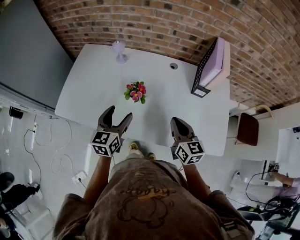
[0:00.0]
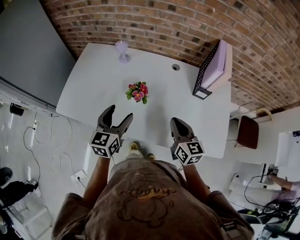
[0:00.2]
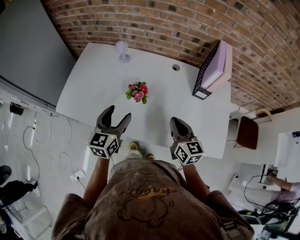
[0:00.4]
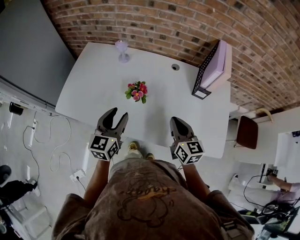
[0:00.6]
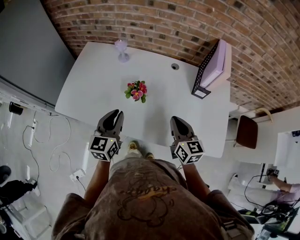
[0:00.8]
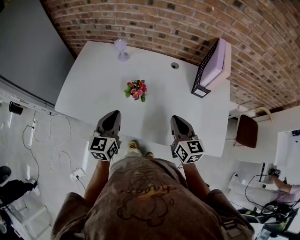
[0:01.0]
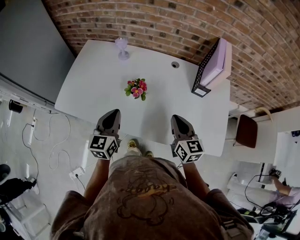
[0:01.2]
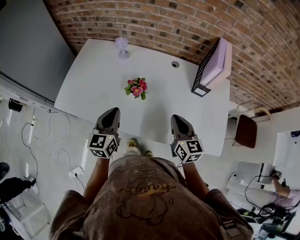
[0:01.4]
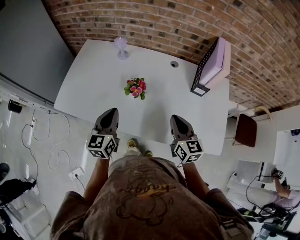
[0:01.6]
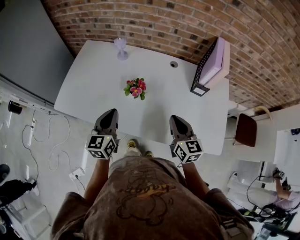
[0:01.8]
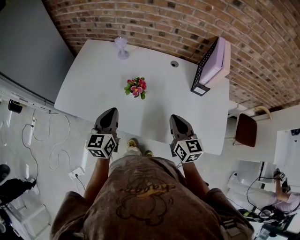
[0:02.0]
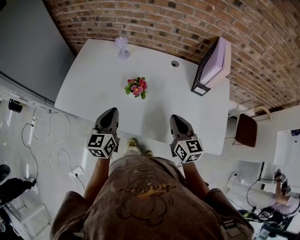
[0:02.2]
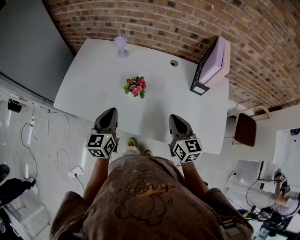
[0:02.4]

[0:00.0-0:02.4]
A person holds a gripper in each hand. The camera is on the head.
0:00.0 to 0:01.2: The left gripper closes up.
0:01.2 to 0:02.4: Both grippers stay put.

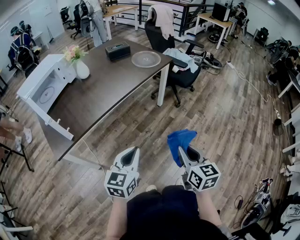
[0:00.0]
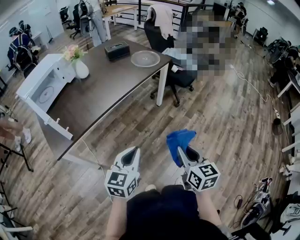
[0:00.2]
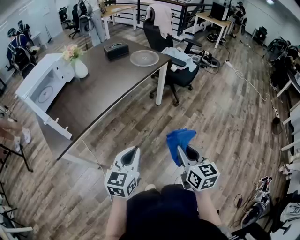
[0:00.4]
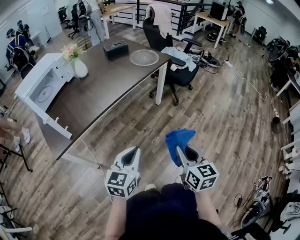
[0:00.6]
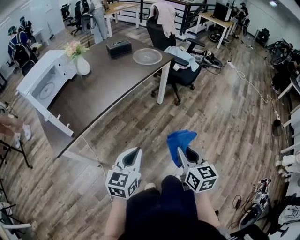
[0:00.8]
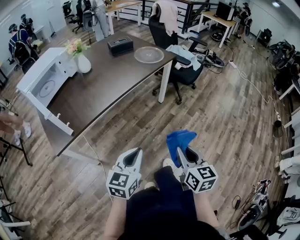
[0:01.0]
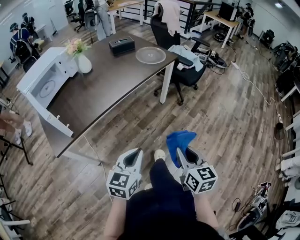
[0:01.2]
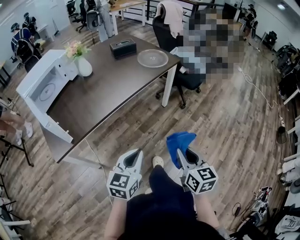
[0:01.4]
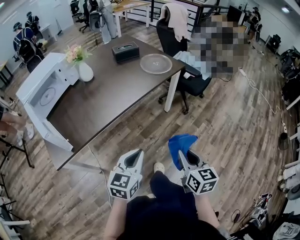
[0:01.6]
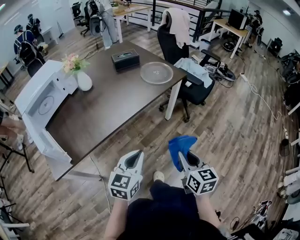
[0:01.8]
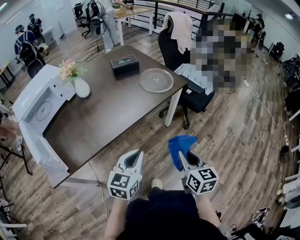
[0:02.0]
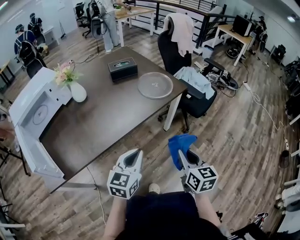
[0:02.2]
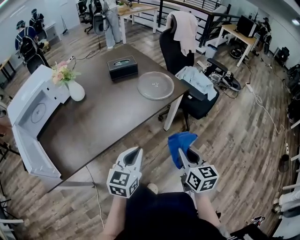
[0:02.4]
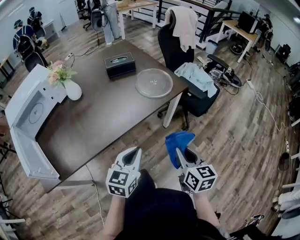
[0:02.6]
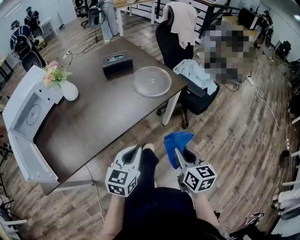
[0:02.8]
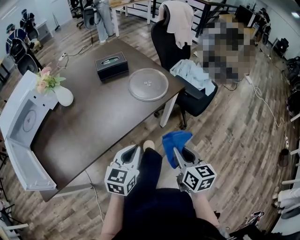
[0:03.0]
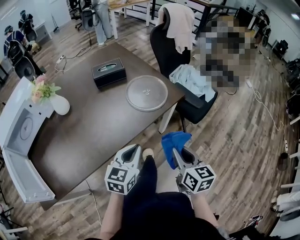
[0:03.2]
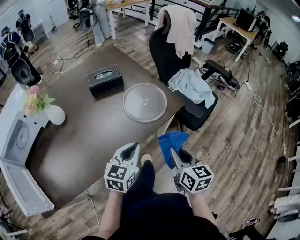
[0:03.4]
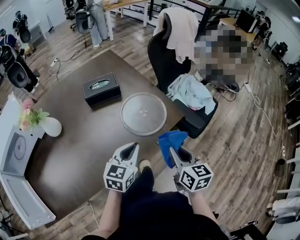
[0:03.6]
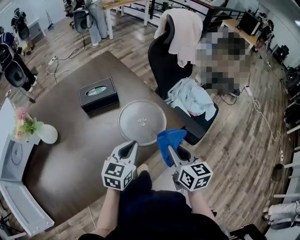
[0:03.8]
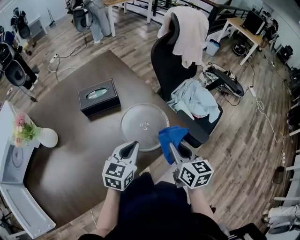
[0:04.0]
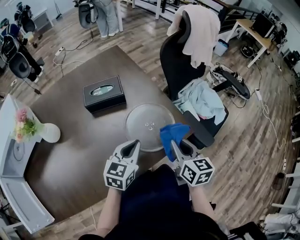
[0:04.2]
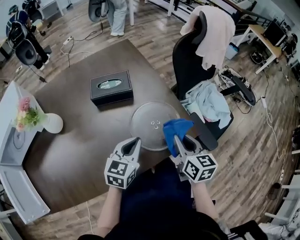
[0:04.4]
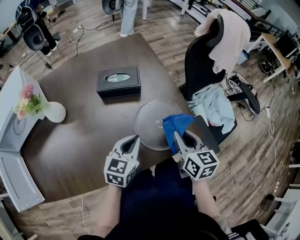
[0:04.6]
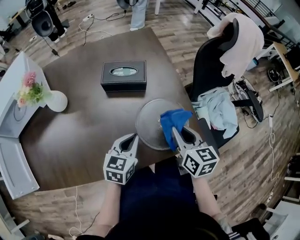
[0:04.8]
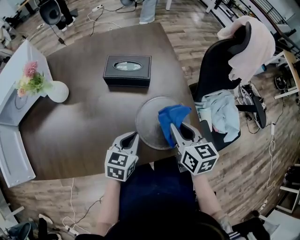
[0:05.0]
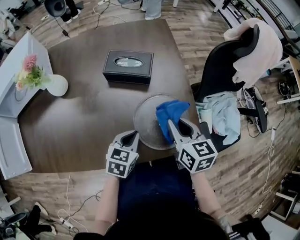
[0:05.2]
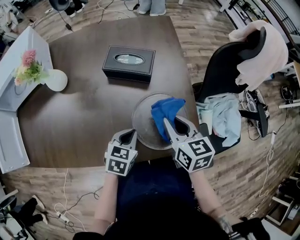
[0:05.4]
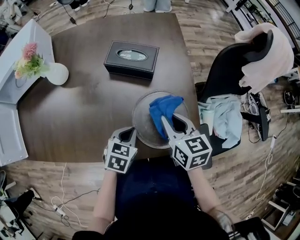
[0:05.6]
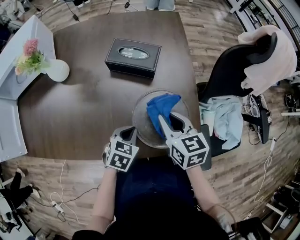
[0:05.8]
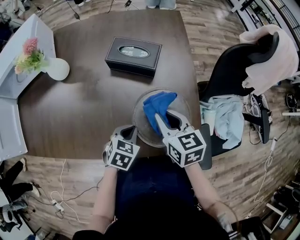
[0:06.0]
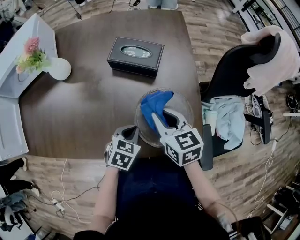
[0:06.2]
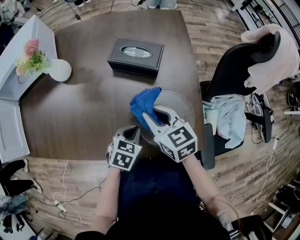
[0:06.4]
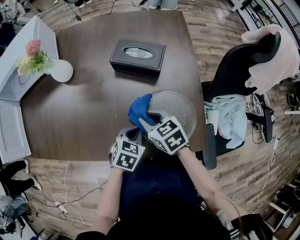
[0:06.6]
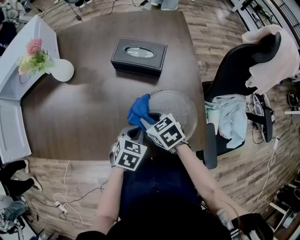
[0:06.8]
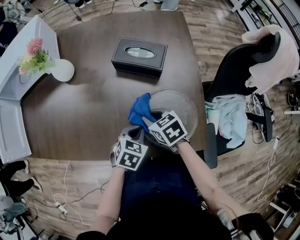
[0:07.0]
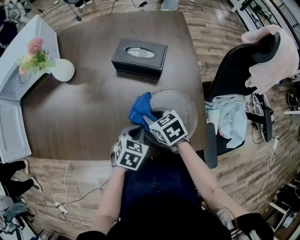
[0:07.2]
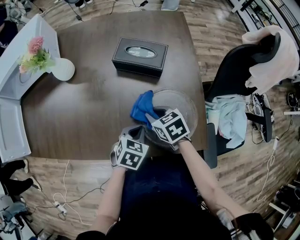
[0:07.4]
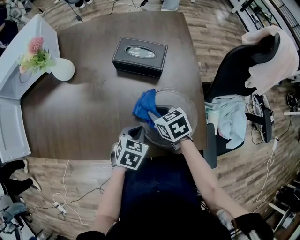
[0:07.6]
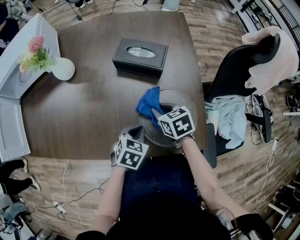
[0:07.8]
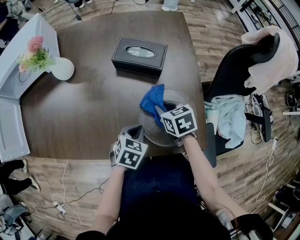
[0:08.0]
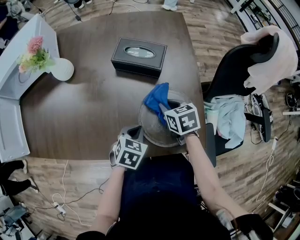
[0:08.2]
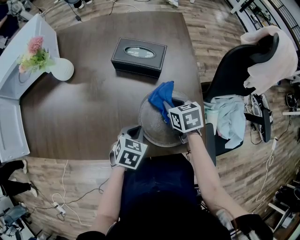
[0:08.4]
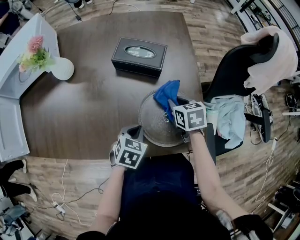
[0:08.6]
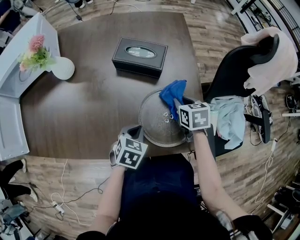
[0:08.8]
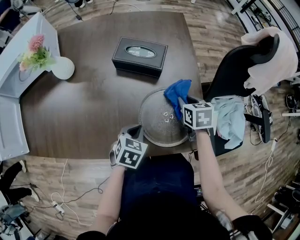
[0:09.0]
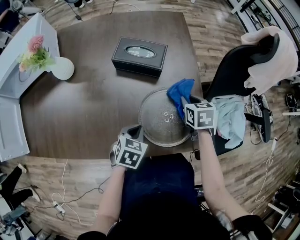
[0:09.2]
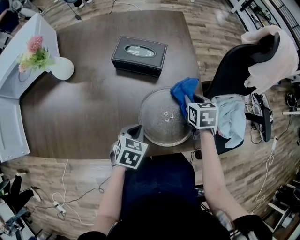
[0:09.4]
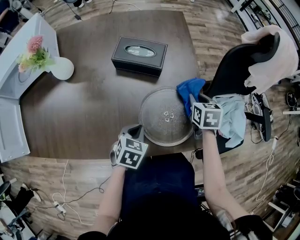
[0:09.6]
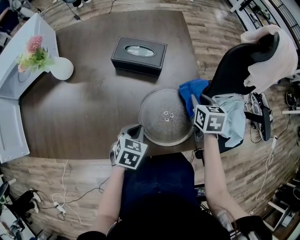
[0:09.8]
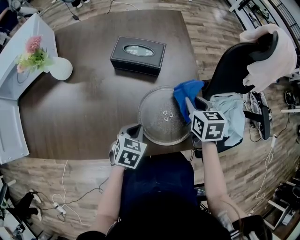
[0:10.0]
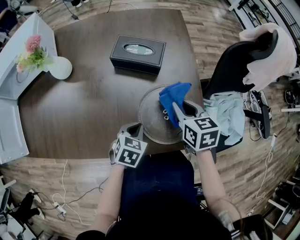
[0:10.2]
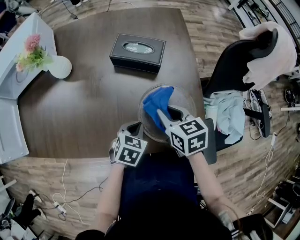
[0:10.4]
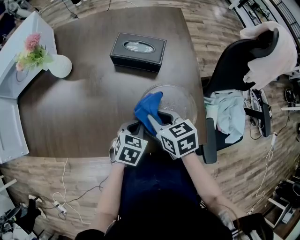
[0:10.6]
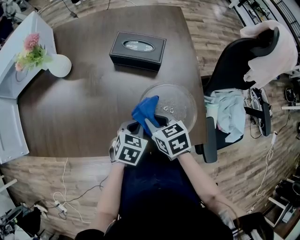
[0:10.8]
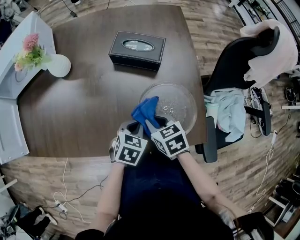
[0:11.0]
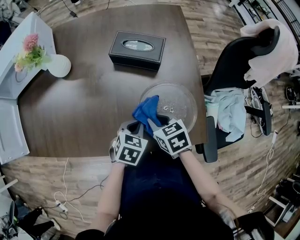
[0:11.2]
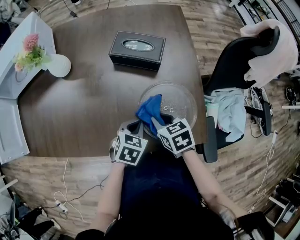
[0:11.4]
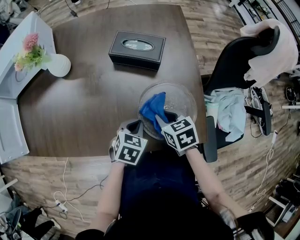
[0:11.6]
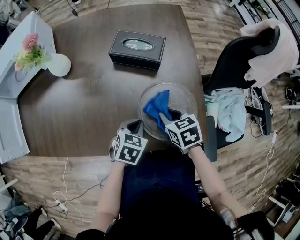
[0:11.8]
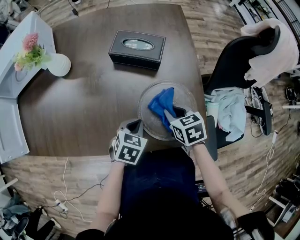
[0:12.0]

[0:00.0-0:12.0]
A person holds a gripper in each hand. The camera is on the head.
0:00.0 to 0:01.6: The two grippers go some 10 cm forward.
0:01.6 to 0:03.0: The grippers both shift forward by about 30 cm.
0:03.0 to 0:04.4: Both grippers move forward, roughly 35 cm.
0:04.4 to 0:06.0: The left gripper travels downward by roughly 10 cm, and angles its fingers downward, by some 30 degrees. Meanwhile the right gripper changes place by roughly 15 cm, and rotates roughly 40 degrees.
0:06.0 to 0:07.6: The right gripper is displaced downward and to the left by about 10 cm, and changes its angle by about 20 degrees.
0:07.6 to 0:09.0: The right gripper is displaced to the right by some 15 cm, and swivels some 20 degrees.
0:09.0 to 0:10.4: The right gripper heads to the left, backward and upward, covering some 15 cm.
0:10.4 to 0:12.0: The right gripper is displaced downward by roughly 5 cm.

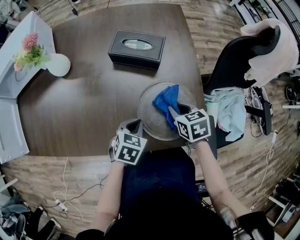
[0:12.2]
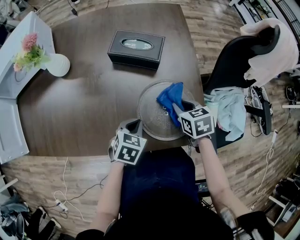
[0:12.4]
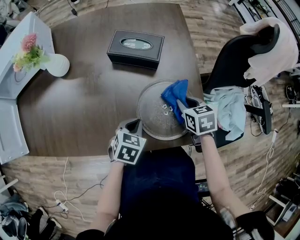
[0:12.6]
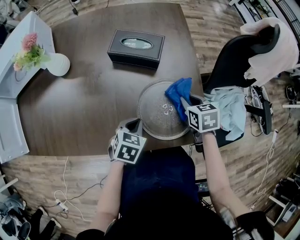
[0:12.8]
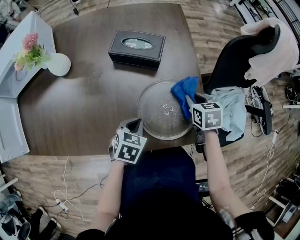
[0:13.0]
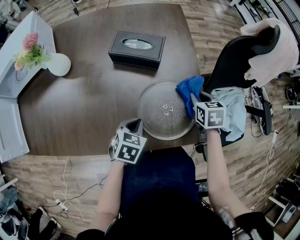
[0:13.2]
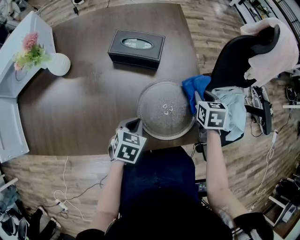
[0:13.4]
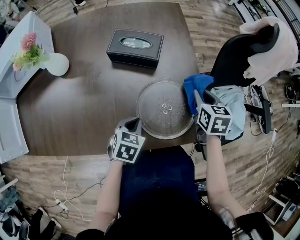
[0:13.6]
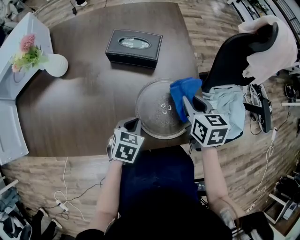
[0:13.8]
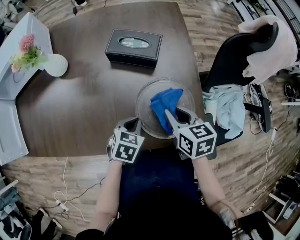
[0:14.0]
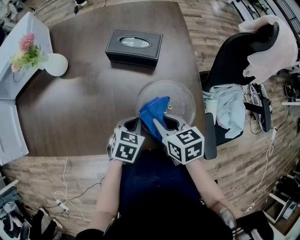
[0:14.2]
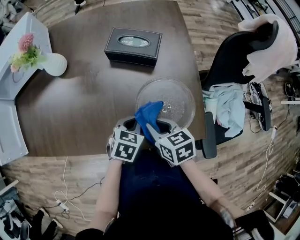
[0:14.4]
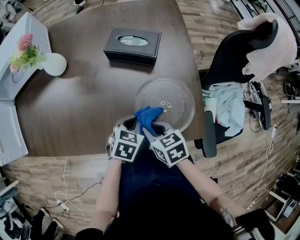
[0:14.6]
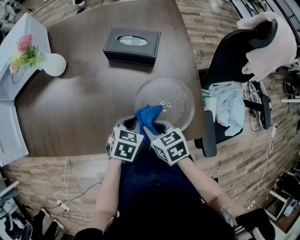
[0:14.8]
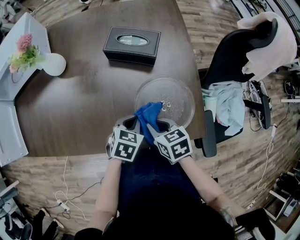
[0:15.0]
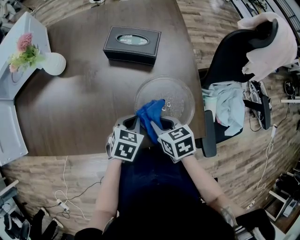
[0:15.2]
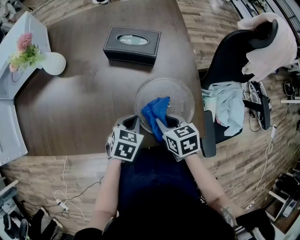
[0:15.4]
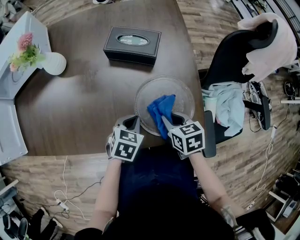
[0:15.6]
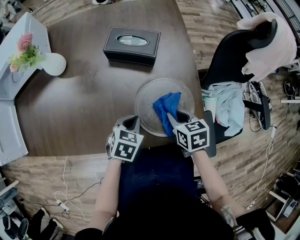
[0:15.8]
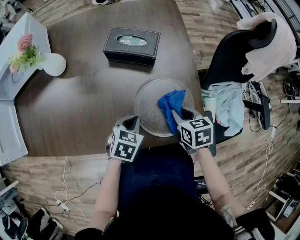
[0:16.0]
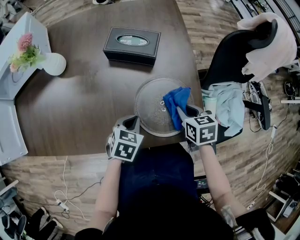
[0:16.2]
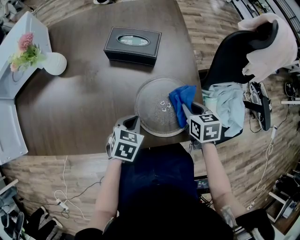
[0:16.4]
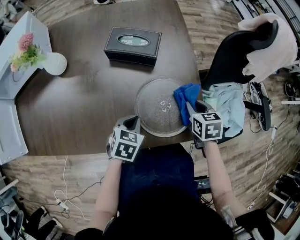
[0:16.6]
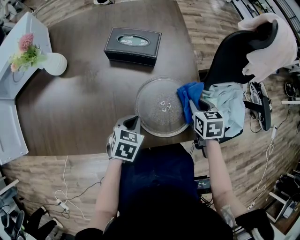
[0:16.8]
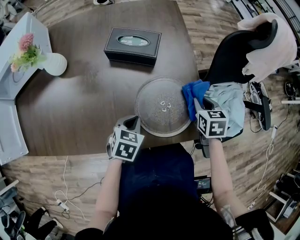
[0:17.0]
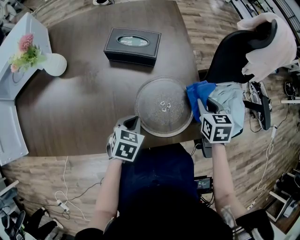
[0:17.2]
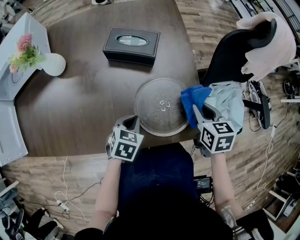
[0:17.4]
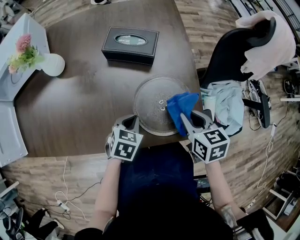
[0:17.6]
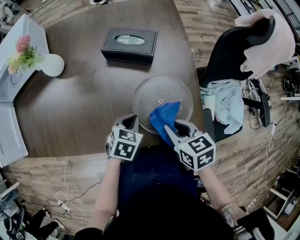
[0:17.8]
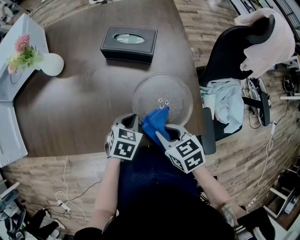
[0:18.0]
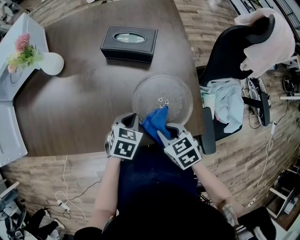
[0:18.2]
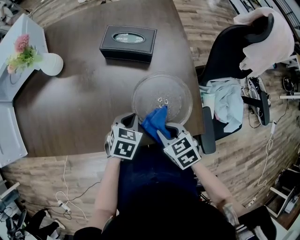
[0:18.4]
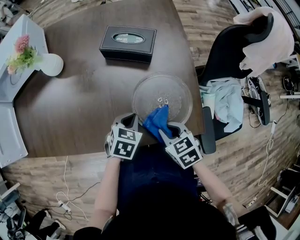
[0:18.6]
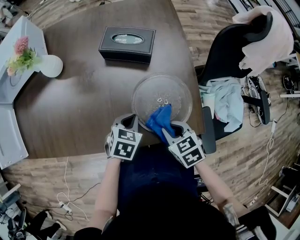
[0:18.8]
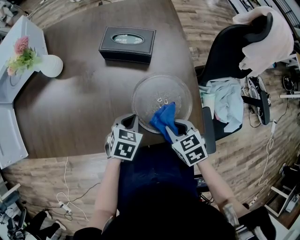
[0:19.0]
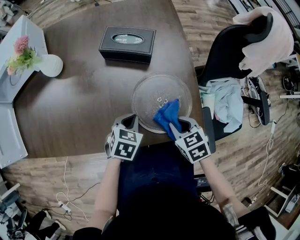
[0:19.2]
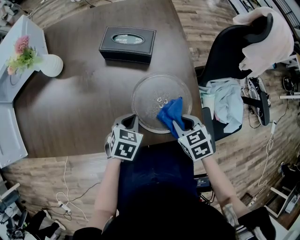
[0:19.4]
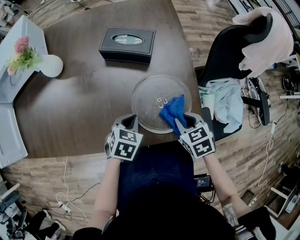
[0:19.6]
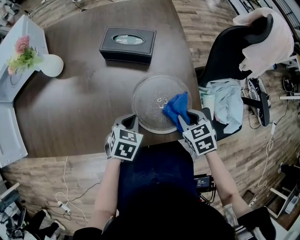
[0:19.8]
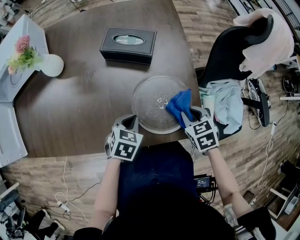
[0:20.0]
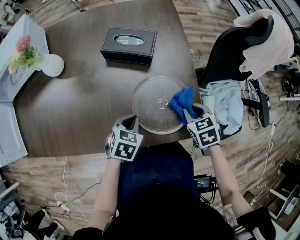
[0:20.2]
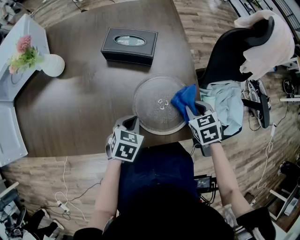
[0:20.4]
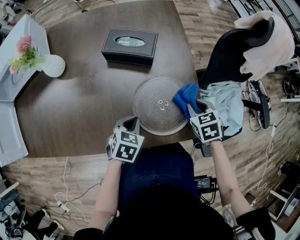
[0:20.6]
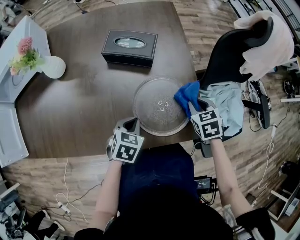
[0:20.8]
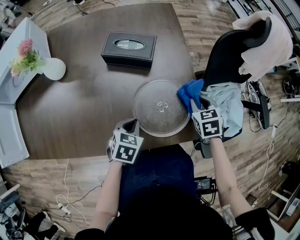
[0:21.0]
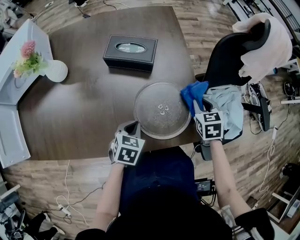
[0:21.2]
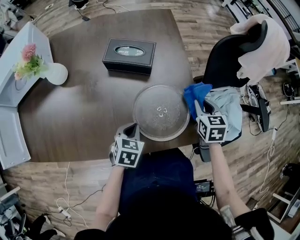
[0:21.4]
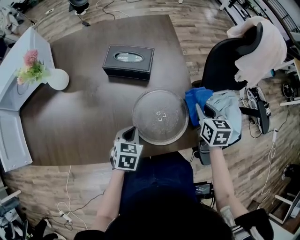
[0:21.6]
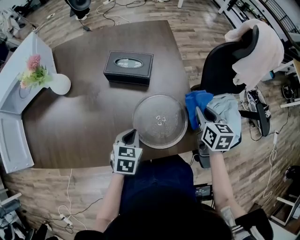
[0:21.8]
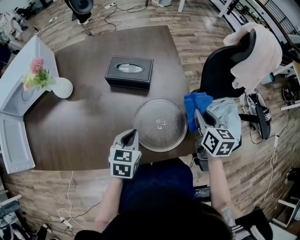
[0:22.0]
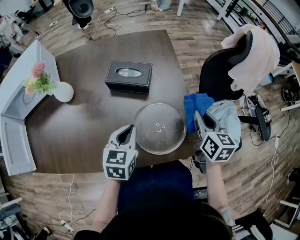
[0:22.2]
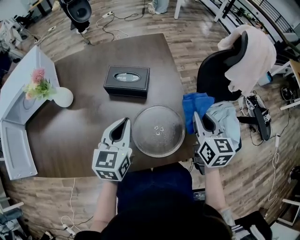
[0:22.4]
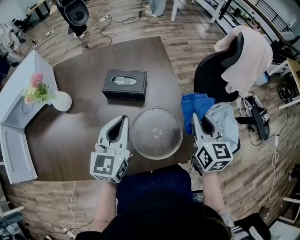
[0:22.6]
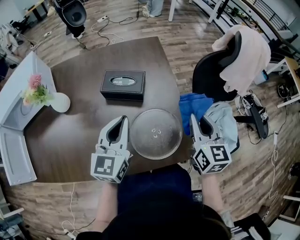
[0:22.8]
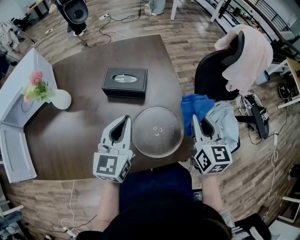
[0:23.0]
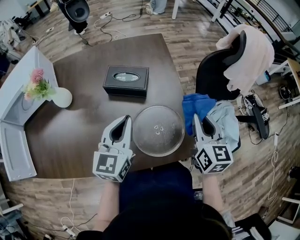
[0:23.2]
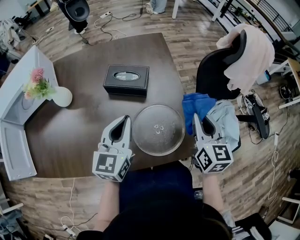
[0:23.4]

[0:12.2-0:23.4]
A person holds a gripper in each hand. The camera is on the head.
0:12.2 to 0:13.8: The right gripper travels upward by roughly 5 cm, and swivels about 20 degrees.
0:13.8 to 0:15.4: The right gripper heads to the left, backward and downward, covering some 15 cm, and swivels about 20 degrees.
0:15.4 to 0:17.0: The right gripper travels to the right and forward by approximately 20 cm, and changes its angle by some 20 degrees.
0:17.0 to 0:18.6: The right gripper moves to the left and backward, roughly 20 cm, and rotates approximately 30 degrees.
0:18.6 to 0:20.2: The right gripper heads to the right and forward, covering approximately 15 cm.
0:20.2 to 0:21.8: The right gripper heads upward and forward, covering approximately 10 cm, and changes its angle by about 40 degrees.
0:21.8 to 0:23.4: The right gripper heads upward, covering roughly 10 cm, and changes its angle by about 20 degrees, while the left gripper goes about 15 cm upward, and tilts its fingers roughly 40 degrees upward.
